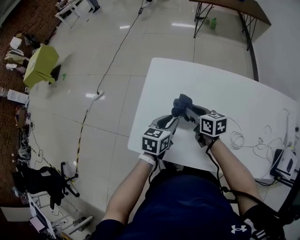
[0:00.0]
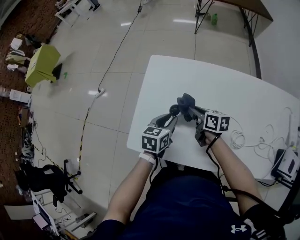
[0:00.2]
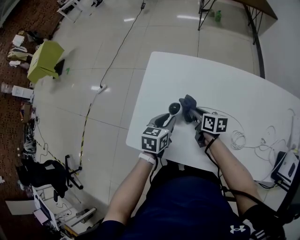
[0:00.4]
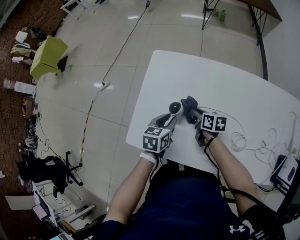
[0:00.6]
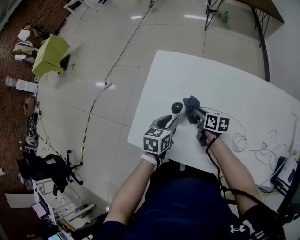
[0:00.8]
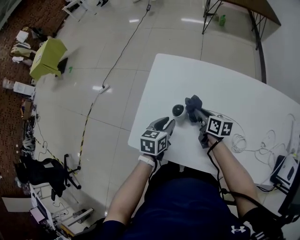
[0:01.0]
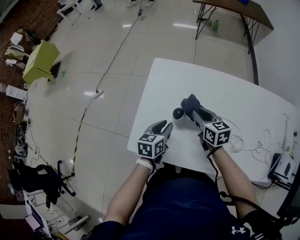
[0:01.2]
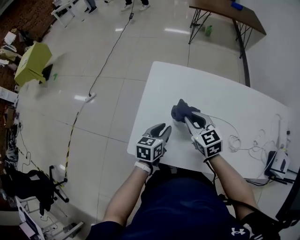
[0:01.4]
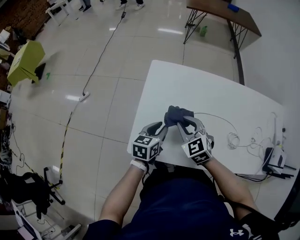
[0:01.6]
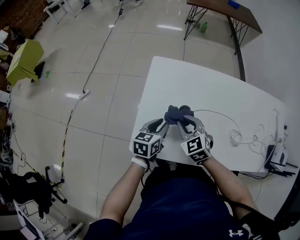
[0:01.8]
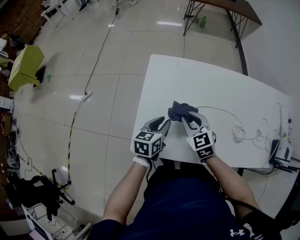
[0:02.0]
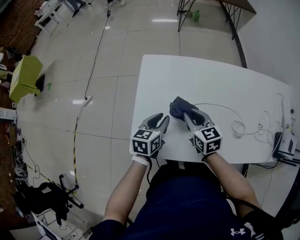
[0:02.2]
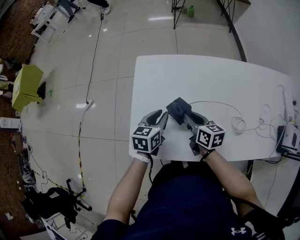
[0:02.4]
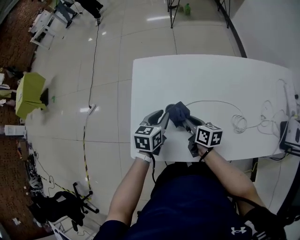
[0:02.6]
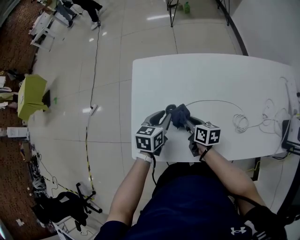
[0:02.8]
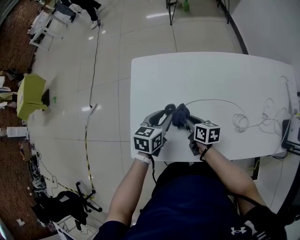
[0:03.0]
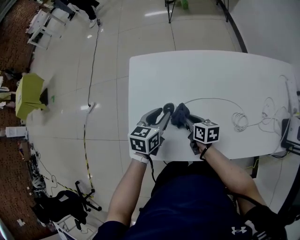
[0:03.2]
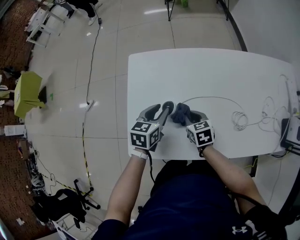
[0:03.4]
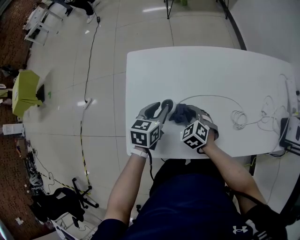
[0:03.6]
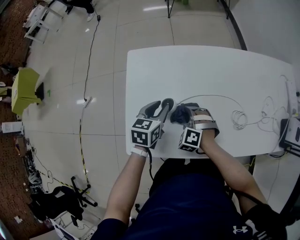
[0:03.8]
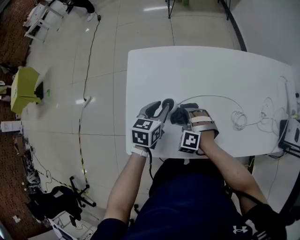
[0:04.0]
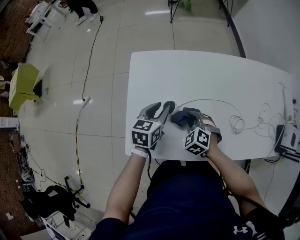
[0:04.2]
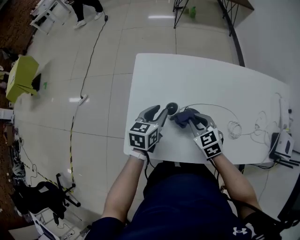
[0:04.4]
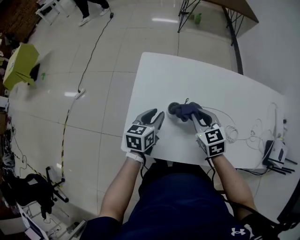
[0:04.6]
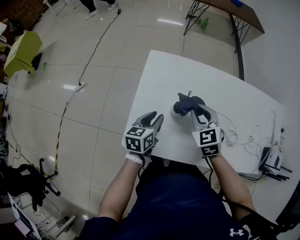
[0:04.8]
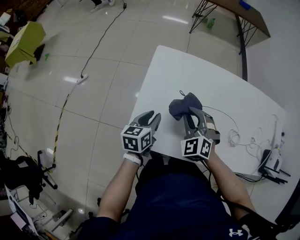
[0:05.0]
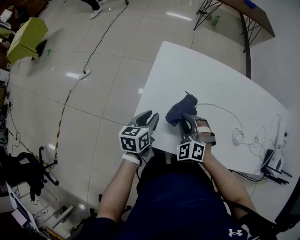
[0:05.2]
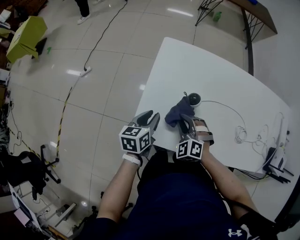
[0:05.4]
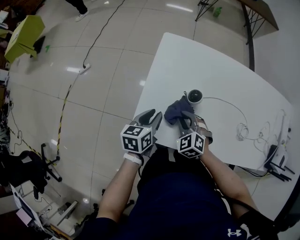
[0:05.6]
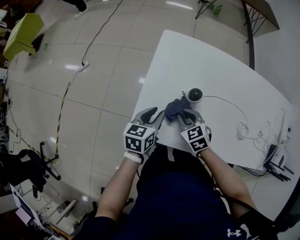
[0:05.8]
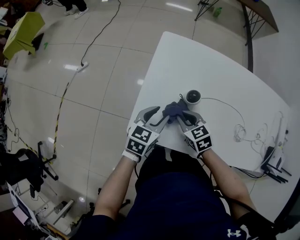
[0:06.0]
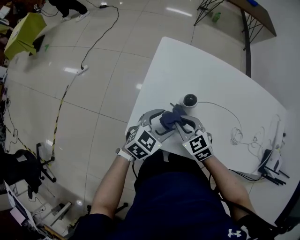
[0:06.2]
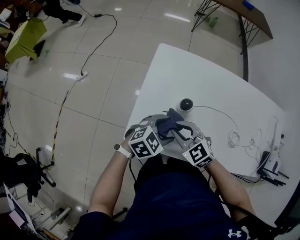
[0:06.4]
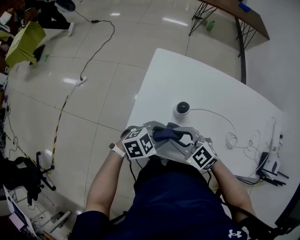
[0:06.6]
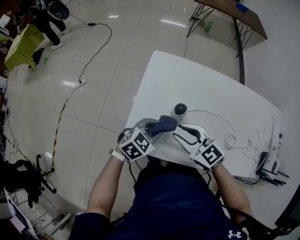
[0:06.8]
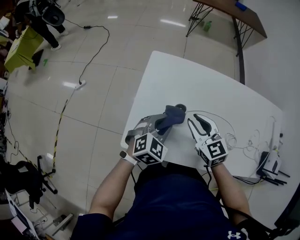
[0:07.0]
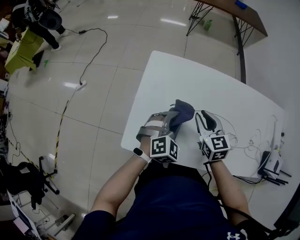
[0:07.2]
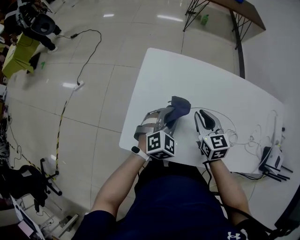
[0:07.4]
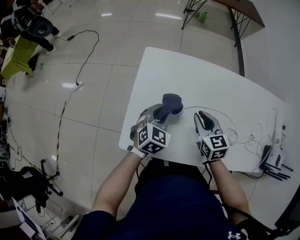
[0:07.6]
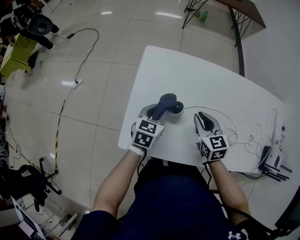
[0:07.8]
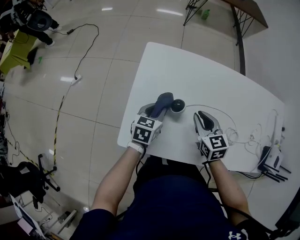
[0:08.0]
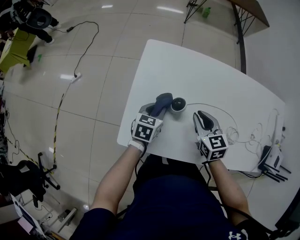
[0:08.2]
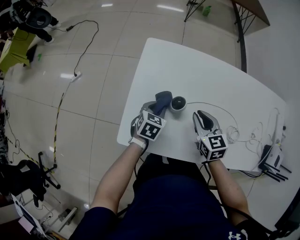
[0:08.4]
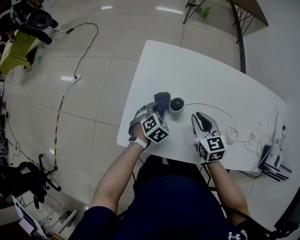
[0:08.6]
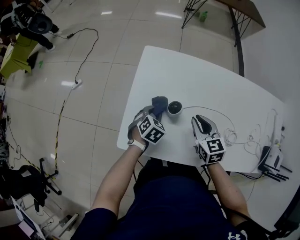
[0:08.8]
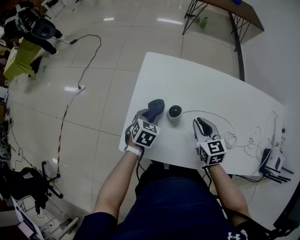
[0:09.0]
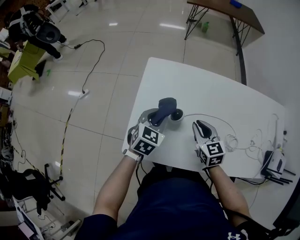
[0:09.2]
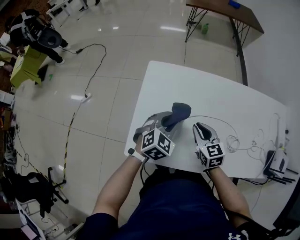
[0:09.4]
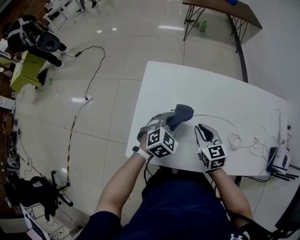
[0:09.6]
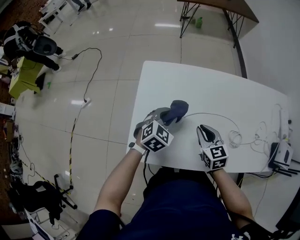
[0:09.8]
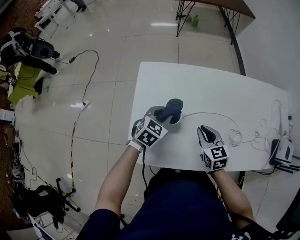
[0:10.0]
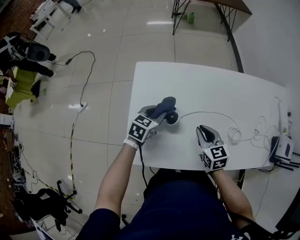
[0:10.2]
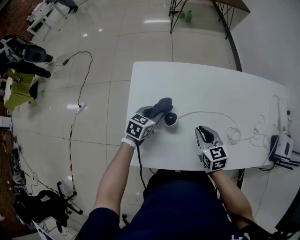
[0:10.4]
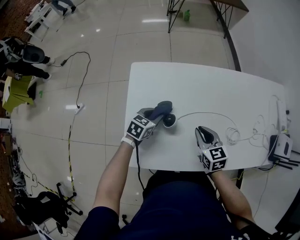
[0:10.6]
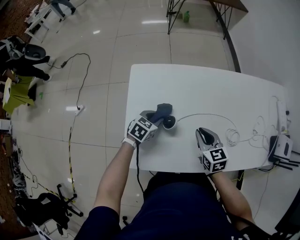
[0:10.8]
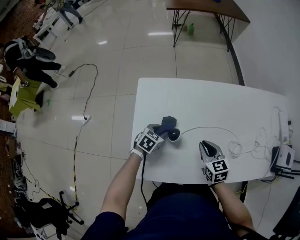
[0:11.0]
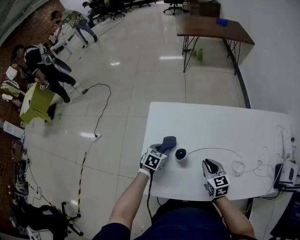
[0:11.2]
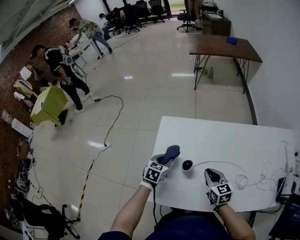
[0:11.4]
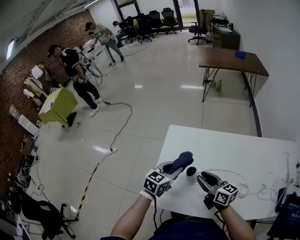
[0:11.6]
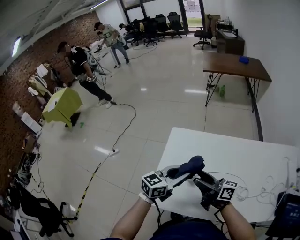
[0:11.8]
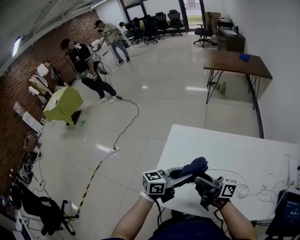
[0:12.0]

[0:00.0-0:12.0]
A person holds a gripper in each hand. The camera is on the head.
0:00.0 to 0:01.6: The two grippers go roughly 5 cm to the left. The right gripper goes downward and returns, some 10 cm each way, and rolls counterclockwise, seen from behind, by about 50 degrees.
0:01.6 to 0:03.0: The left gripper shifts roughly 5 cm to the right, while the right gripper shifts roughly 15 cm downward and to the right, and rolls clockwise, seen from behind, by approximately 70 degrees.
0:03.0 to 0:04.4: The right gripper travels upward by about 5 cm, and rolls counterclockwise, seen from behind, by approximately 50 degrees.
0:04.4 to 0:06.0: The left gripper shifts approximately 10 cm backward and to the left; the right gripper moves to the left, roughly 10 cm.
0:06.0 to 0:07.6: The right gripper moves about 15 cm, and turns by some 30 degrees. The left gripper moves roughly 10 cm, rotates approximately 30 degrees, and opens, then closes again.
0:07.6 to 0:09.0: The left gripper travels to the left and downward by about 10 cm.
0:09.0 to 0:10.4: The left gripper heads forward, covering approximately 5 cm, and turns by about 20 degrees.
0:10.4 to 0:12.0: The left gripper travels upward and backward by approximately 20 cm, and angles its fingers upward, by about 40 degrees; the right gripper moves upward and to the left, about 20 cm, points its fingers approximately 50 degrees further upward, and opens up.

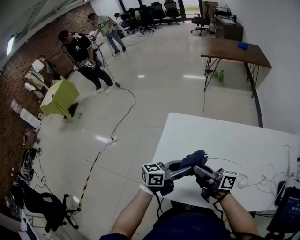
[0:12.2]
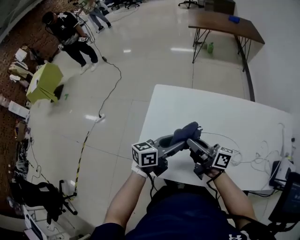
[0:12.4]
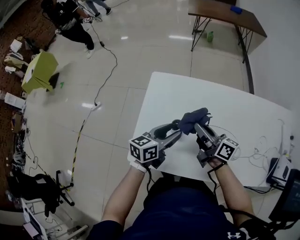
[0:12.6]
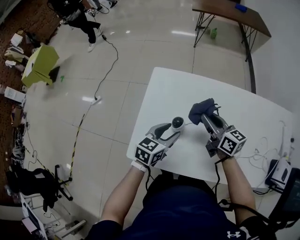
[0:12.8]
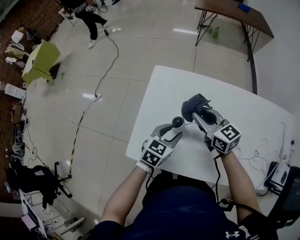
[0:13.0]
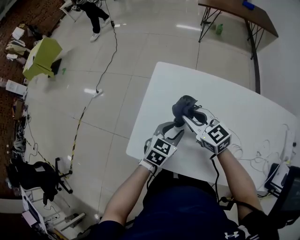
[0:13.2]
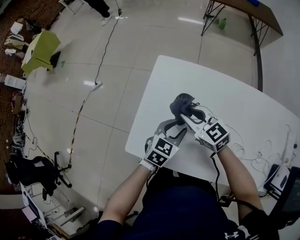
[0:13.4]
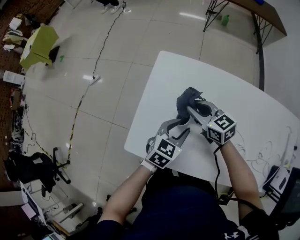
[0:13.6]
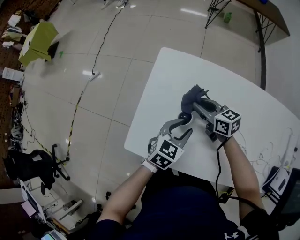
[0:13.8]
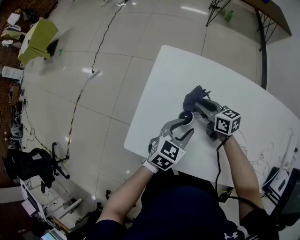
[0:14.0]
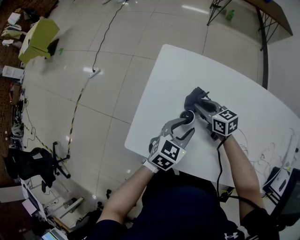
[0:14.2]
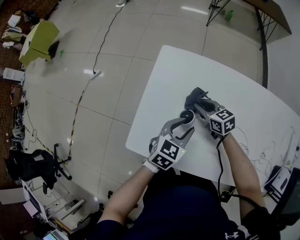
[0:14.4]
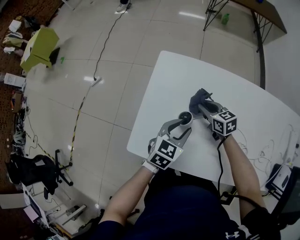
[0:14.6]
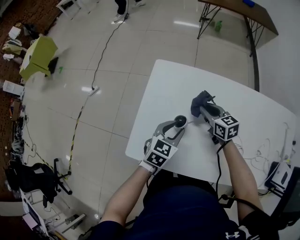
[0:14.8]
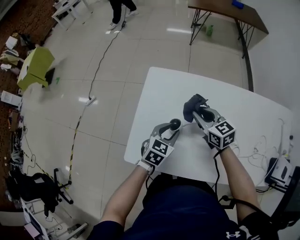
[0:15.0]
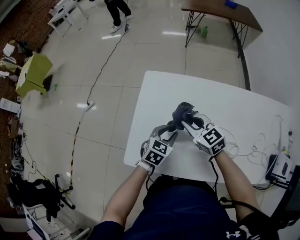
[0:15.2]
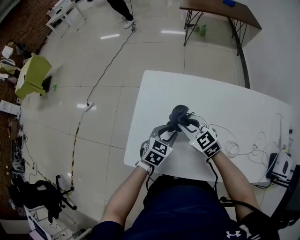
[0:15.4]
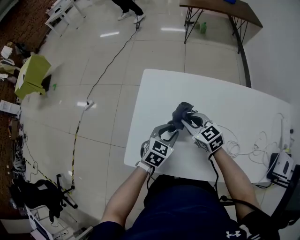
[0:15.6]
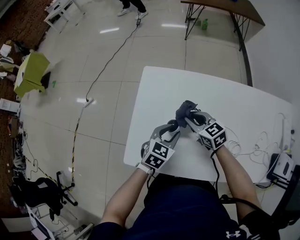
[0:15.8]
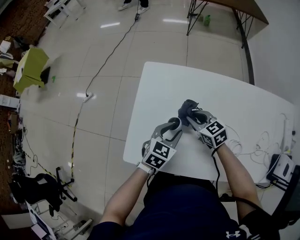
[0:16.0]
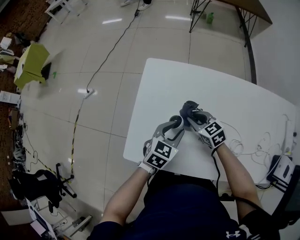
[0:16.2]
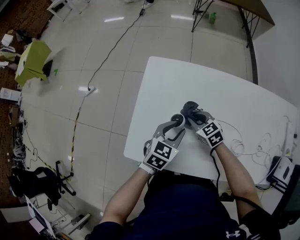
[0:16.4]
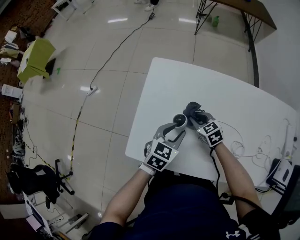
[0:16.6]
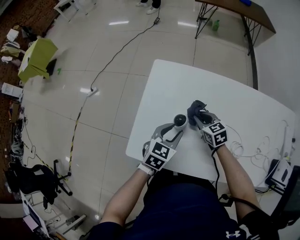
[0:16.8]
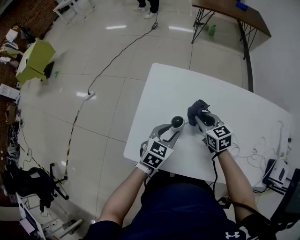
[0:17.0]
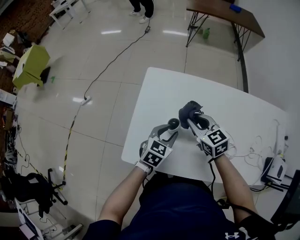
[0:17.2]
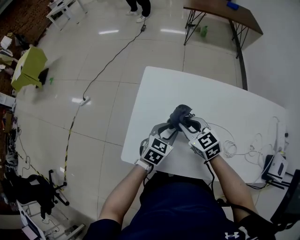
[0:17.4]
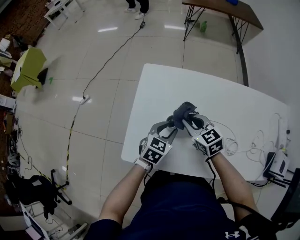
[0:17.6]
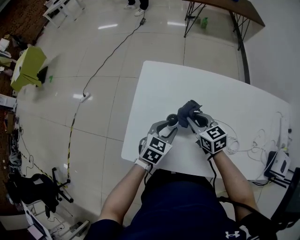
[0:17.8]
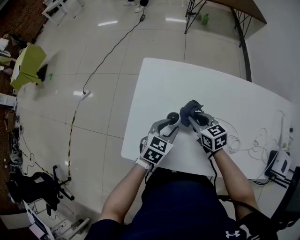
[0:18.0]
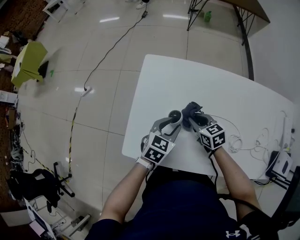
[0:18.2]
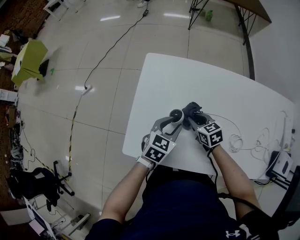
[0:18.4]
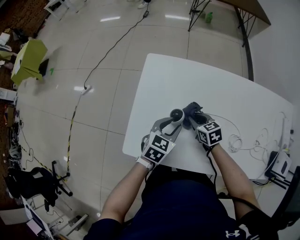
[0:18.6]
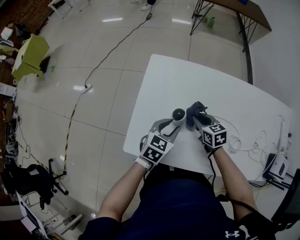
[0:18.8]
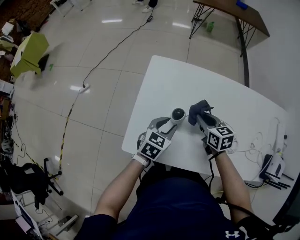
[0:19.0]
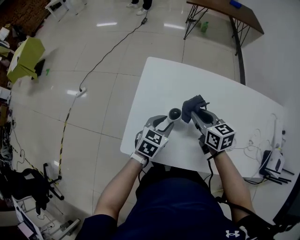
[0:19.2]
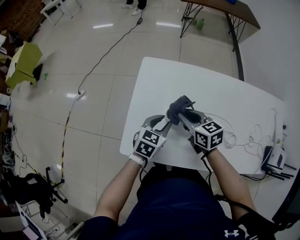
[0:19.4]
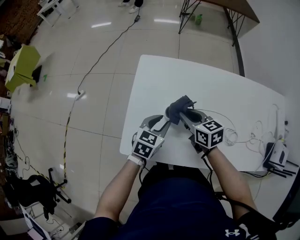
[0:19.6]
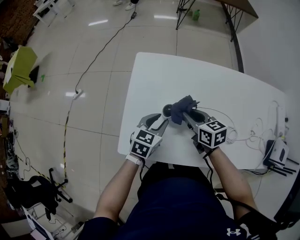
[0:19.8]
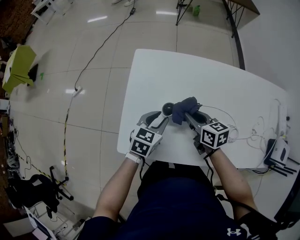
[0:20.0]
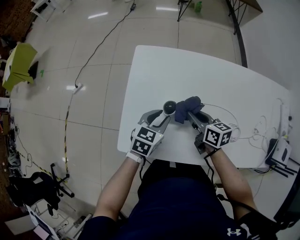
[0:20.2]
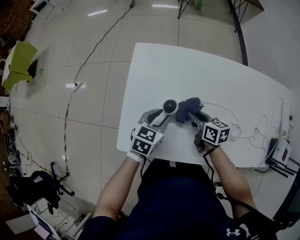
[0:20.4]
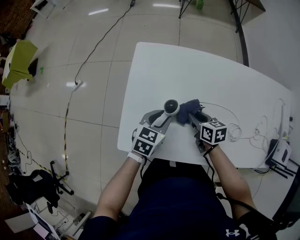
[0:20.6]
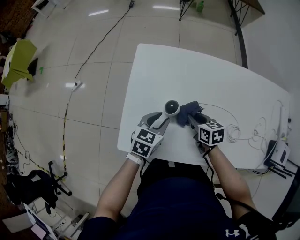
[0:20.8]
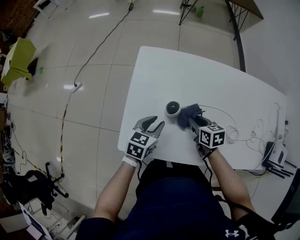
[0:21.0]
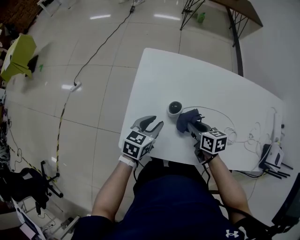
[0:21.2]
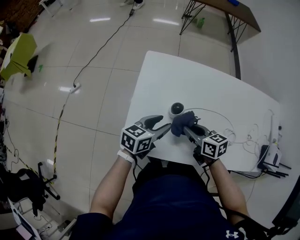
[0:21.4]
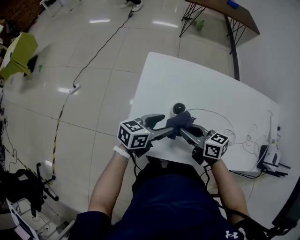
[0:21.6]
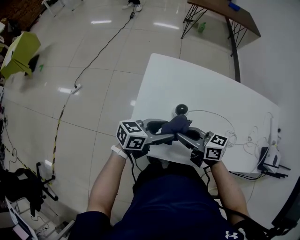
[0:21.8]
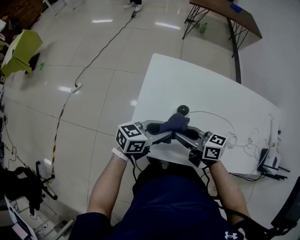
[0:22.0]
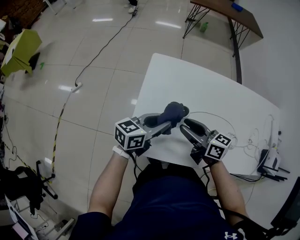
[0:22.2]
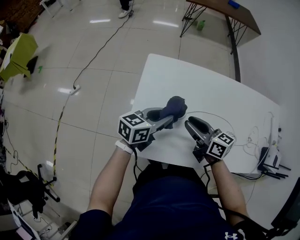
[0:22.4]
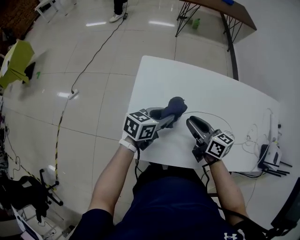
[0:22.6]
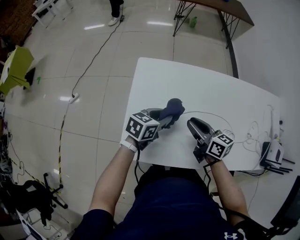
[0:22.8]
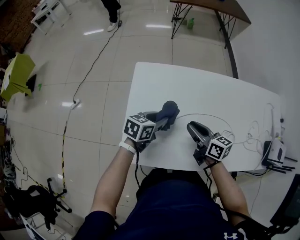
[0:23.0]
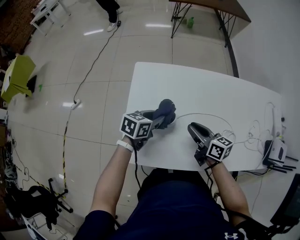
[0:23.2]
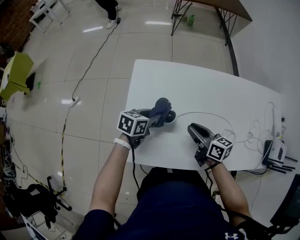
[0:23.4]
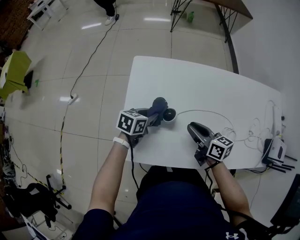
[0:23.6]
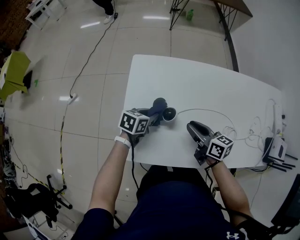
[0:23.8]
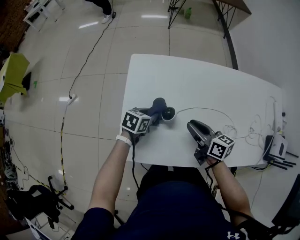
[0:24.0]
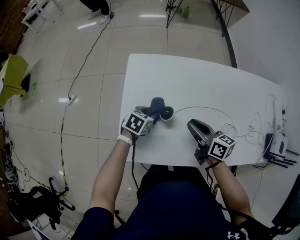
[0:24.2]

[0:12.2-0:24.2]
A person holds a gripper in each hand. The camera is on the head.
0:12.2 to 0:13.8: The right gripper moves downward and forward, roughly 20 cm, and points its fingers roughly 30 degrees further downward; the left gripper moves downward, about 15 cm, and tilts its fingers about 30 degrees downward.
0:13.8 to 0:15.2: The right gripper travels upward and backward by some 10 cm, and swivels approximately 30 degrees.
0:15.2 to 0:16.6: The right gripper heads downward, covering some 15 cm, and changes its angle by approximately 20 degrees.
0:16.6 to 0:18.2: The right gripper goes upward and returns, about 15 cm each way.
0:18.2 to 0:19.8: The right gripper moves upward, approximately 5 cm.
0:19.8 to 0:21.2: The right gripper travels backward by approximately 5 cm.
0:21.2 to 0:22.6: The left gripper ends up some 10 cm from where it was, and opens and closes again; the right gripper shifts some 10 cm upward, and rotates approximately 30 degrees.
0:22.6 to 0:24.2: The left gripper goes roughly 15 cm downward, and changes its angle by approximately 30 degrees. Meanwhile the right gripper changes place by roughly 5 cm.
